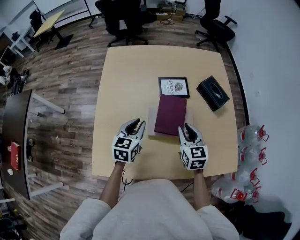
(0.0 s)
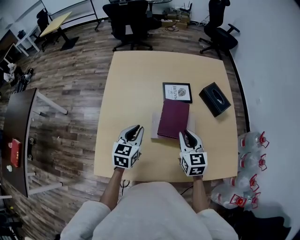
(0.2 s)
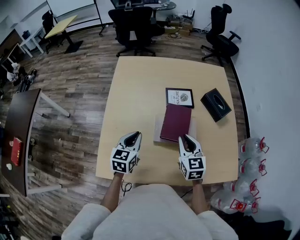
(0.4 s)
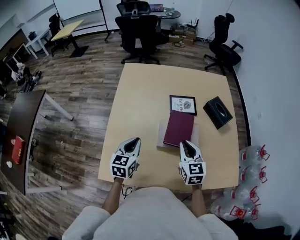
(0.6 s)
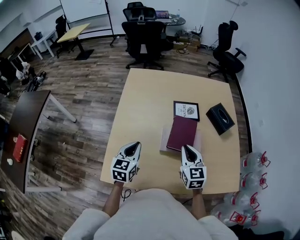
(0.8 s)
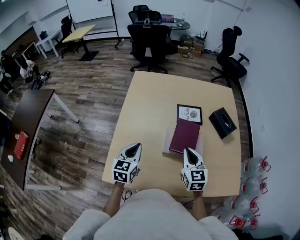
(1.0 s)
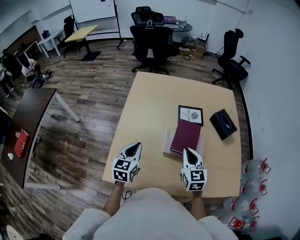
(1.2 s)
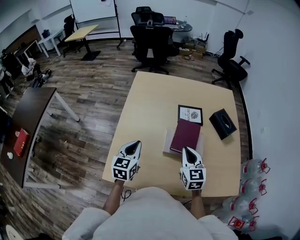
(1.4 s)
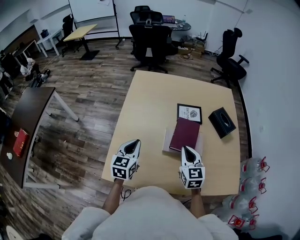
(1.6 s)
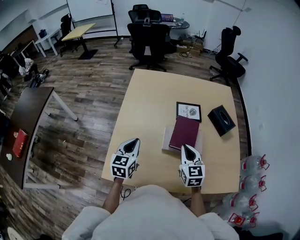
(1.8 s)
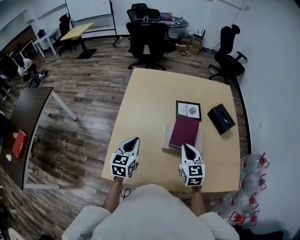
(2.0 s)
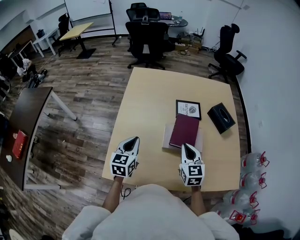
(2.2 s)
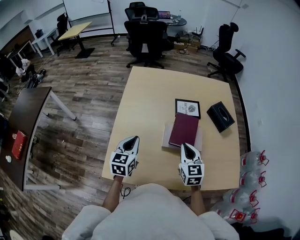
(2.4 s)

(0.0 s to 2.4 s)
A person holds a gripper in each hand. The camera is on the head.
0.0 s - 1.2 s: The left gripper travels to the left and backward by some 15 cm. The right gripper travels to the left and upward by some 10 cm.
1.2 s - 2.4 s: The grippers make only small movements.

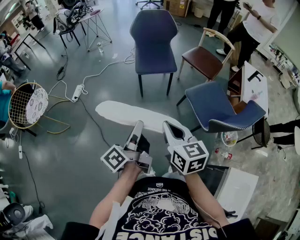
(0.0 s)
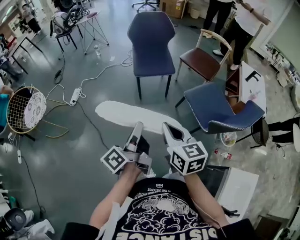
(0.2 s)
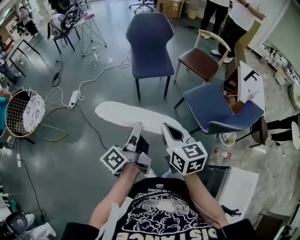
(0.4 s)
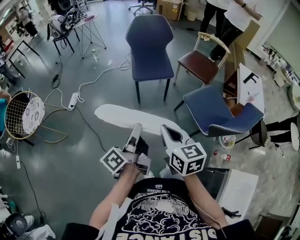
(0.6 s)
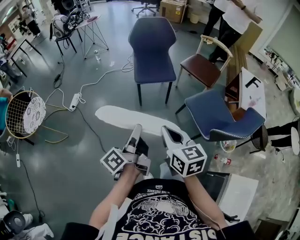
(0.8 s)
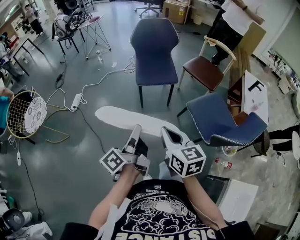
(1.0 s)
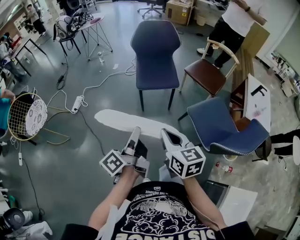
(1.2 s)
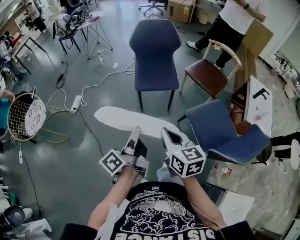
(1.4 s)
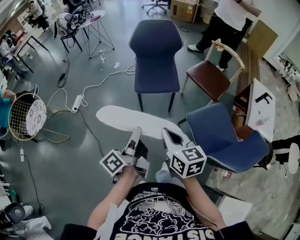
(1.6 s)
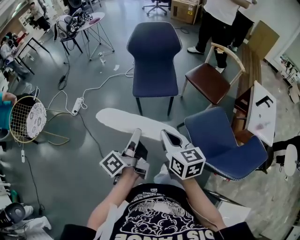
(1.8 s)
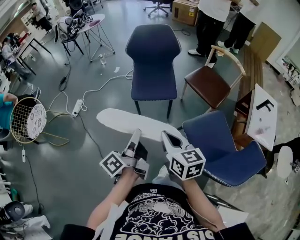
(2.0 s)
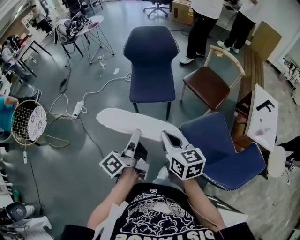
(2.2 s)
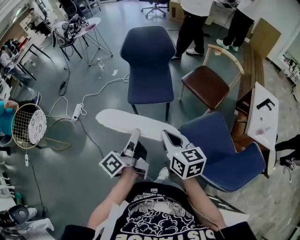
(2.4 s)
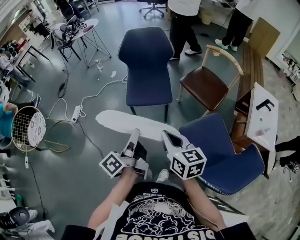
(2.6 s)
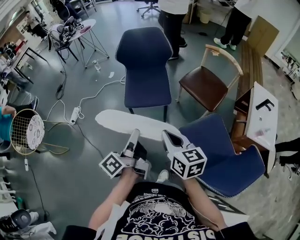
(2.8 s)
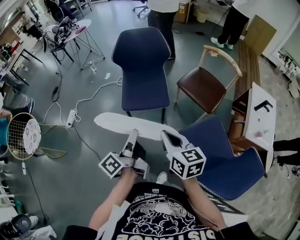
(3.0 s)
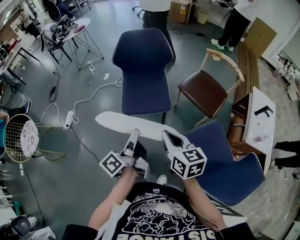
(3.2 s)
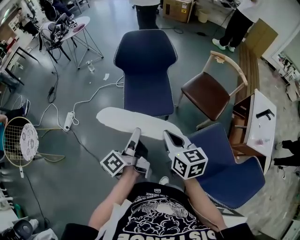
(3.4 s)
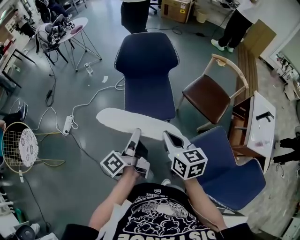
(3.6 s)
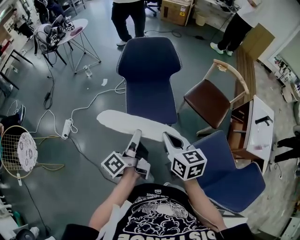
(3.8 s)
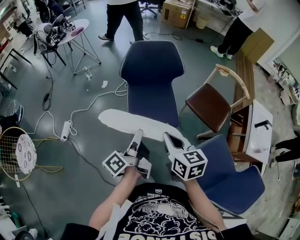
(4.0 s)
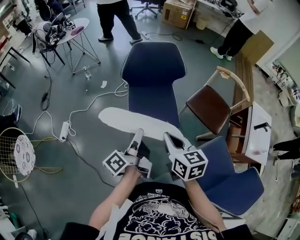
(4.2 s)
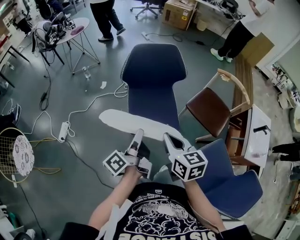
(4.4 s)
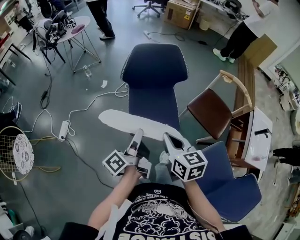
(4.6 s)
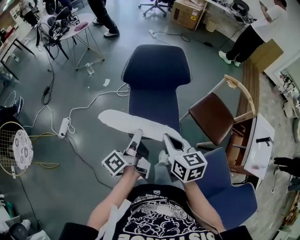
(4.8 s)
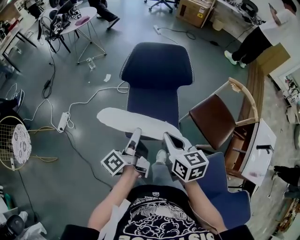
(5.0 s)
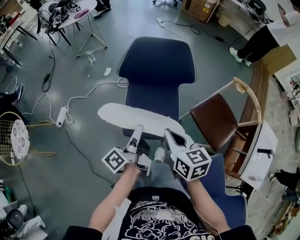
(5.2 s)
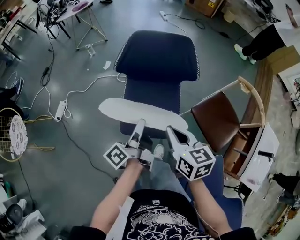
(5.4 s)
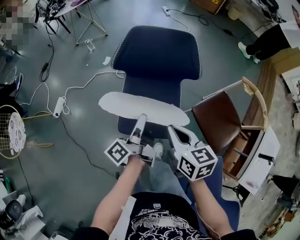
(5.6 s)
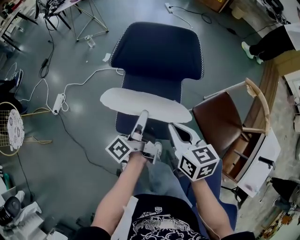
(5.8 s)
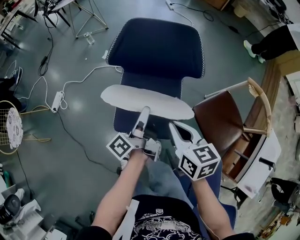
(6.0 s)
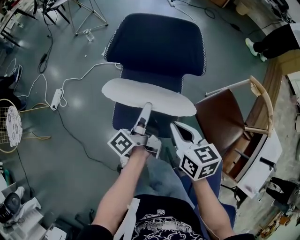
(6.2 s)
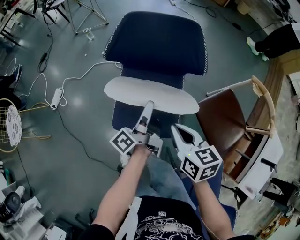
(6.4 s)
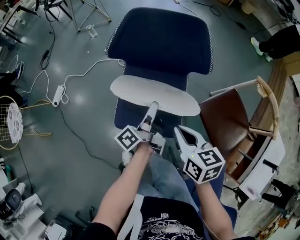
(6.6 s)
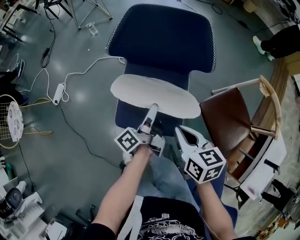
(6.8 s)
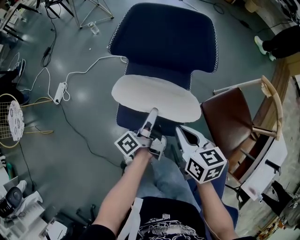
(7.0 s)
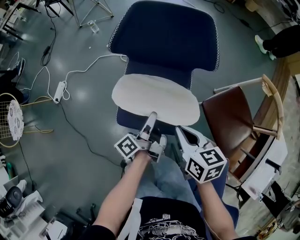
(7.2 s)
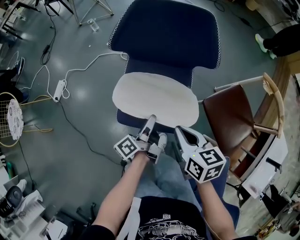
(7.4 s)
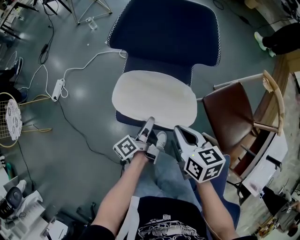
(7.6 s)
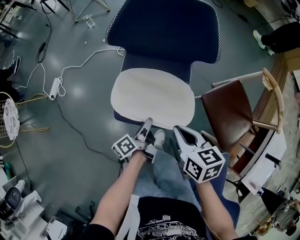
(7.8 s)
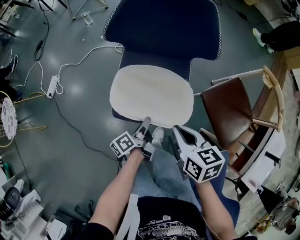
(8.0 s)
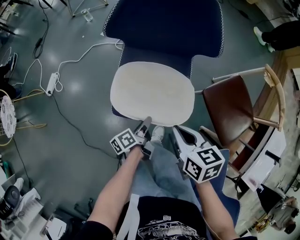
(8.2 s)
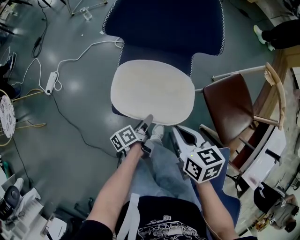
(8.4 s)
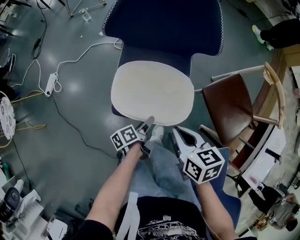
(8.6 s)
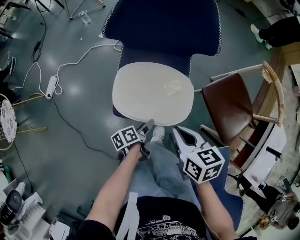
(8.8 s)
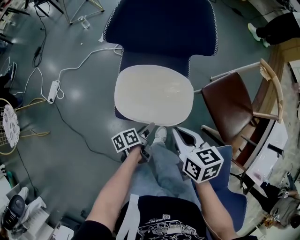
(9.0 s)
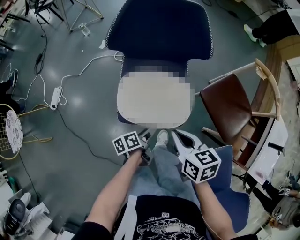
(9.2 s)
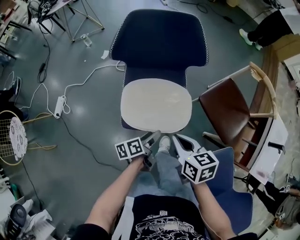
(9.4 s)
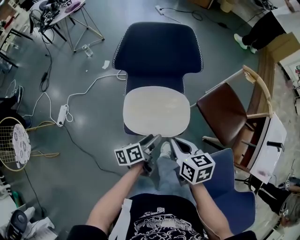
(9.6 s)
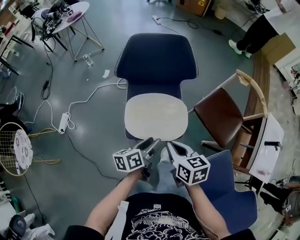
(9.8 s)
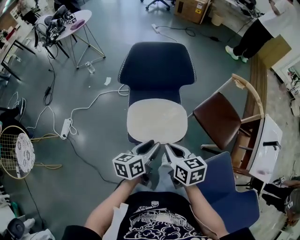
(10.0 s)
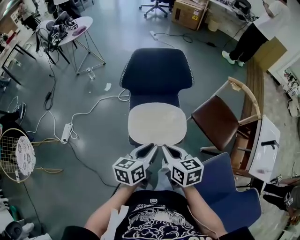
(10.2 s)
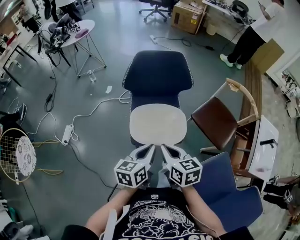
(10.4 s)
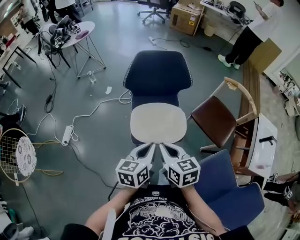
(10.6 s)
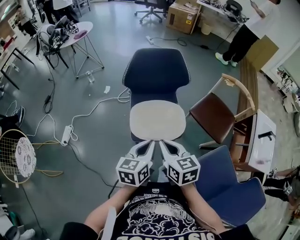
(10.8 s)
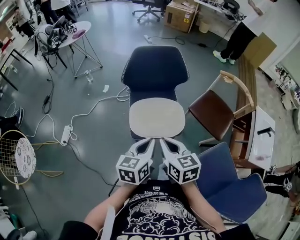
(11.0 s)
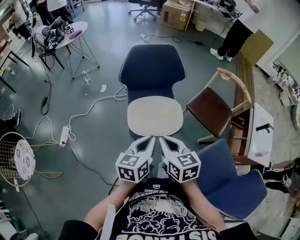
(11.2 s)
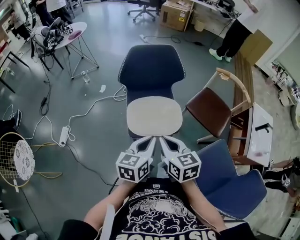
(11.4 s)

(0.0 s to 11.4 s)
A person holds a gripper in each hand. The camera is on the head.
0.0 s - 1.4 s: The right gripper ends up roughly 15 cm from where it was.
1.4 s - 2.8 s: The right gripper shifts by roughly 15 cm.
2.8 s - 4.2 s: The right gripper ends up about 25 cm from where it was.
4.2 s - 5.6 s: The right gripper ends up roughly 20 cm from where it was.
5.6 s - 7.2 s: The right gripper travels downward by about 10 cm.
7.2 s - 8.6 s: The right gripper ends up about 5 cm from where it was.
8.6 s - 10.0 s: The right gripper is displaced upward by about 10 cm.
10.0 s - 11.4 s: The right gripper is displaced upward by roughly 5 cm.

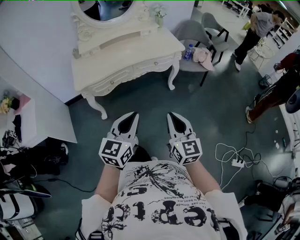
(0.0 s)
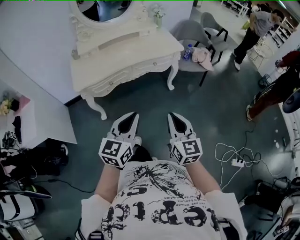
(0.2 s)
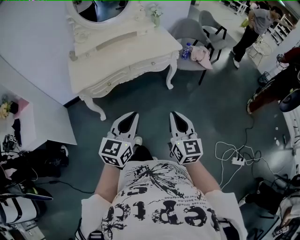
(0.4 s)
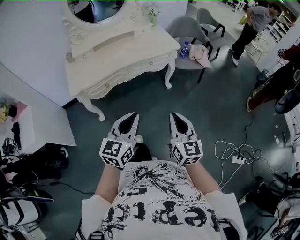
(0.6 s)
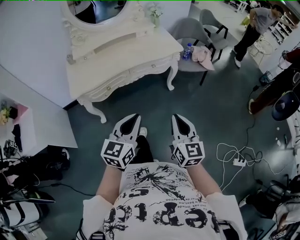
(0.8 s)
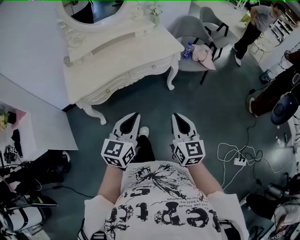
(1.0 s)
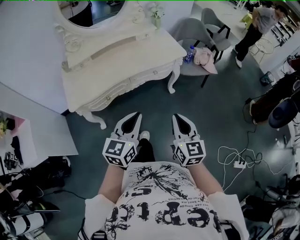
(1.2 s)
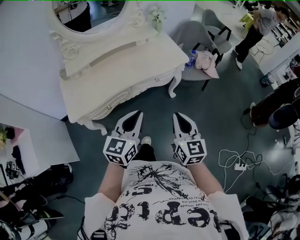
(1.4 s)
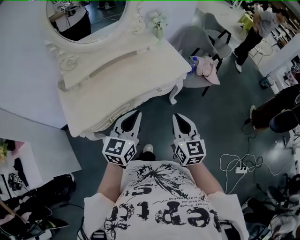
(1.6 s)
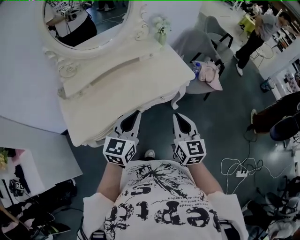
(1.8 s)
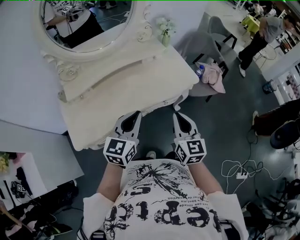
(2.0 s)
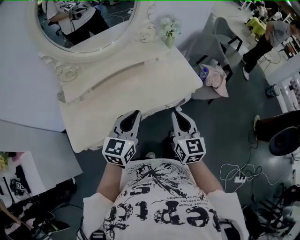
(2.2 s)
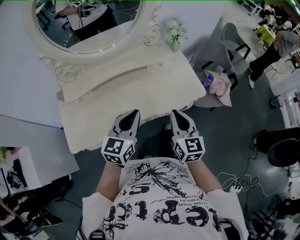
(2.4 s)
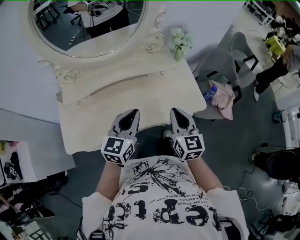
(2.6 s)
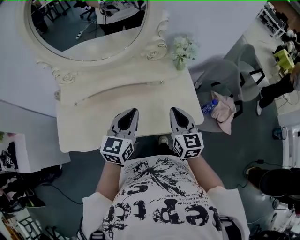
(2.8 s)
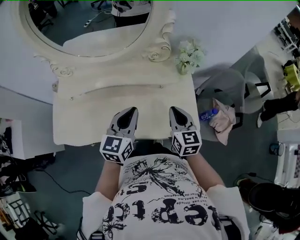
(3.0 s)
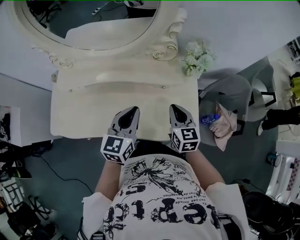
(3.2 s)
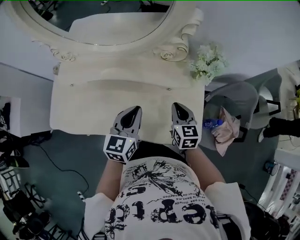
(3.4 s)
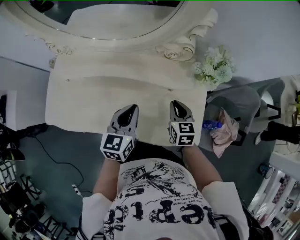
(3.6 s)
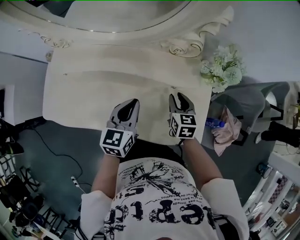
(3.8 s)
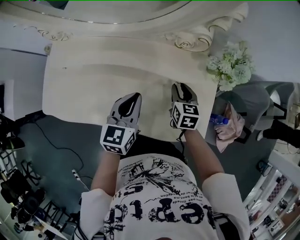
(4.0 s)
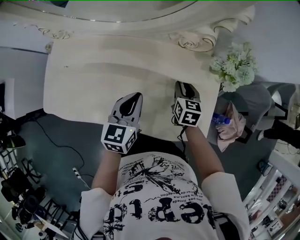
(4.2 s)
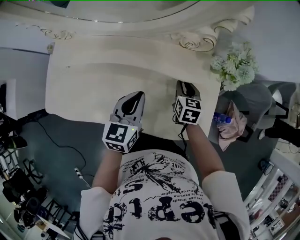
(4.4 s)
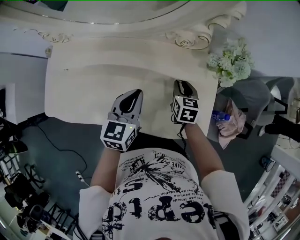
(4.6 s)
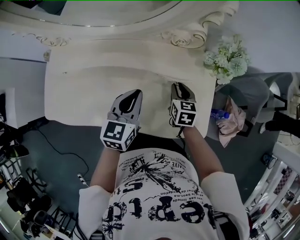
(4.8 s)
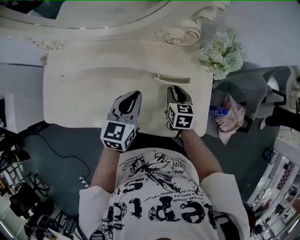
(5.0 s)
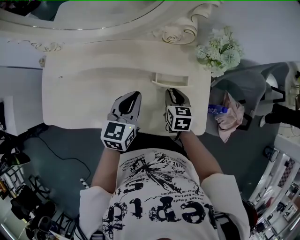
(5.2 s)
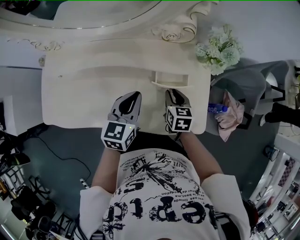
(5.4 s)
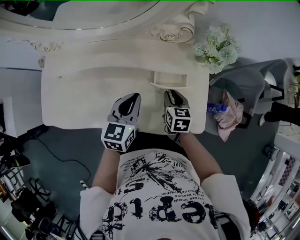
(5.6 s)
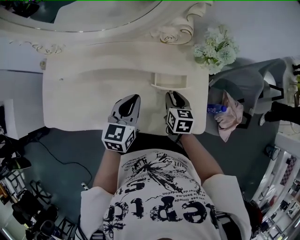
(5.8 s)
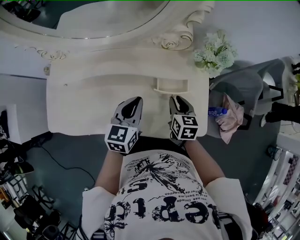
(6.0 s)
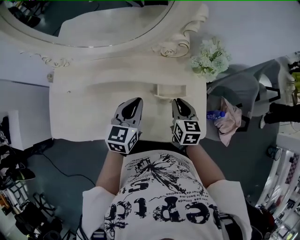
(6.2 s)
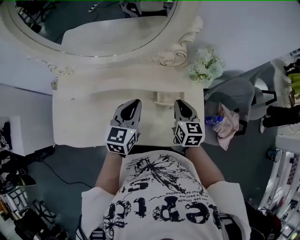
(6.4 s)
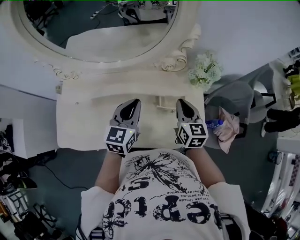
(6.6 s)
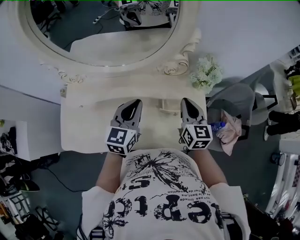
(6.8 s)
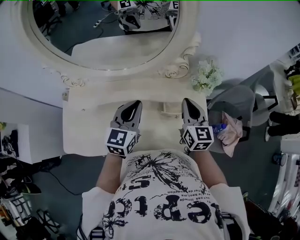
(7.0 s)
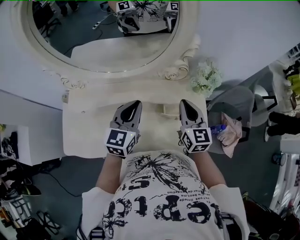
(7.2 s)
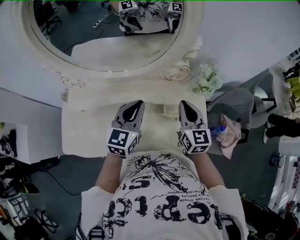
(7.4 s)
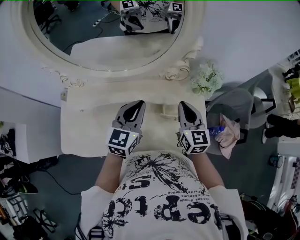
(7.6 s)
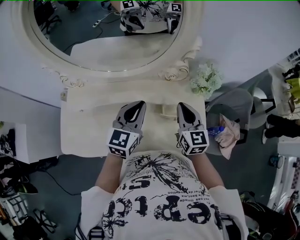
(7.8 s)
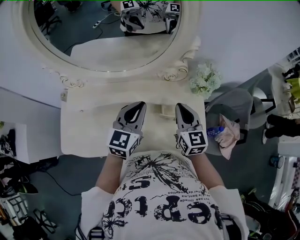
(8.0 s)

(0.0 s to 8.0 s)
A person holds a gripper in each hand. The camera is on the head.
0.0 s - 1.6 s: The grippers both shift forward by approximately 30 cm.
1.6 s - 3.2 s: The left gripper moves about 40 cm, and changes its angle by some 30 degrees; the right gripper moves approximately 50 cm, and swivels roughly 30 degrees.
3.2 s - 4.8 s: The right gripper is displaced downward and forward by about 15 cm, and opens its fingers, while the left gripper shifts approximately 10 cm downward and forward.
4.8 s - 6.4 s: The left gripper goes some 5 cm upward. The right gripper is displaced upward by approximately 15 cm.
6.4 s - 8.0 s: Both grippers travel together upward, about 10 cm.

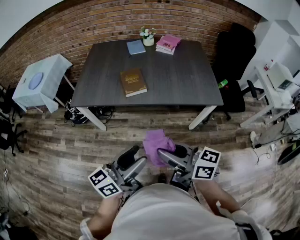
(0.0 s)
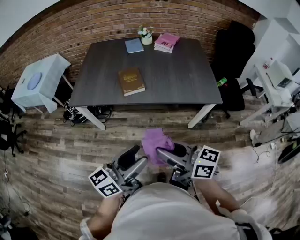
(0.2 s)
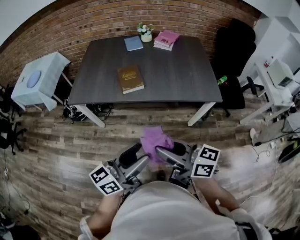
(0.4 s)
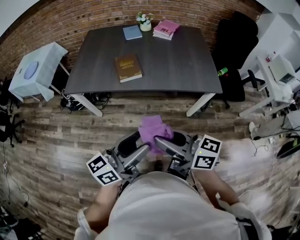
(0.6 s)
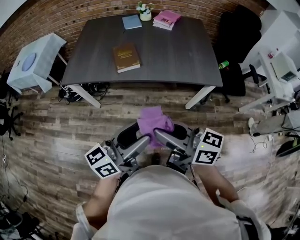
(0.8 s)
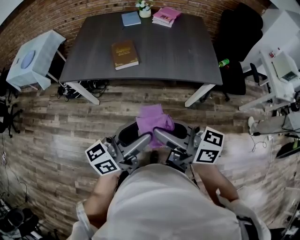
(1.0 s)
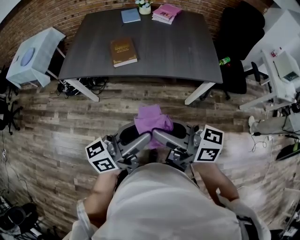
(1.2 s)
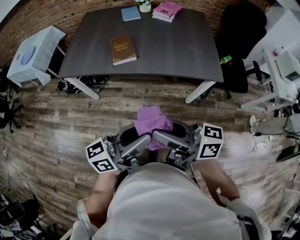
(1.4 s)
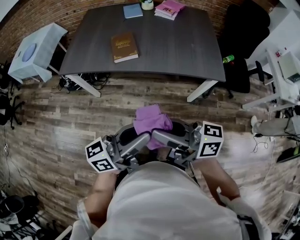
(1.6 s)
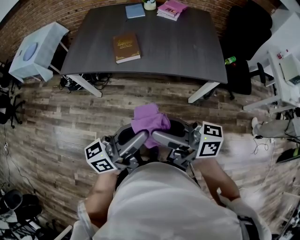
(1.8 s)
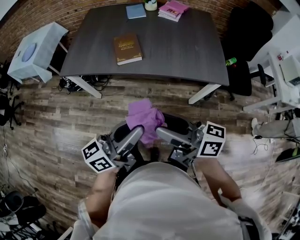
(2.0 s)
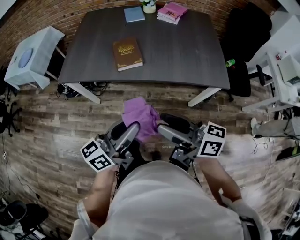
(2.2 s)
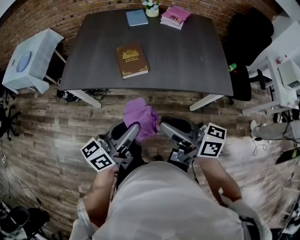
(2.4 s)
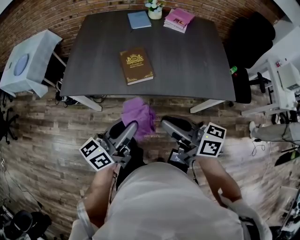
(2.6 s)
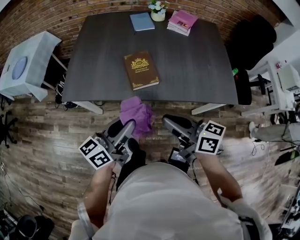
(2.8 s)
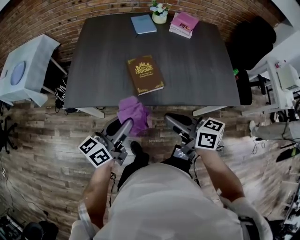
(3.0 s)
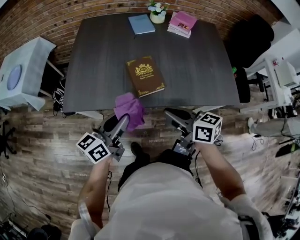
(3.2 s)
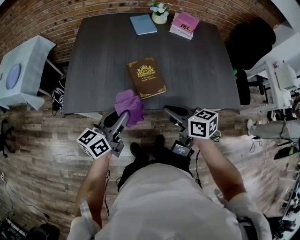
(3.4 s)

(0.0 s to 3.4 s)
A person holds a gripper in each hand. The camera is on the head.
0.0 s - 1.6 s: The left gripper goes some 10 cm to the right, and closes up. The right gripper is displaced to the right by approximately 5 cm.
1.6 s - 3.4 s: The left gripper moves forward and to the left, some 40 cm, and changes its angle by approximately 20 degrees. Meanwhile the right gripper goes approximately 35 cm forward and downward, tips its fingers downward by approximately 40 degrees, and opens, then closes again.
